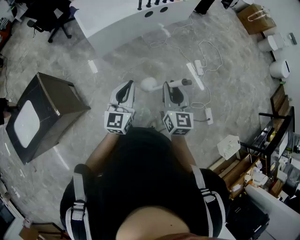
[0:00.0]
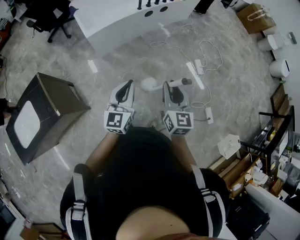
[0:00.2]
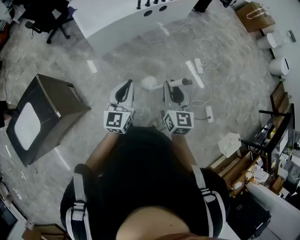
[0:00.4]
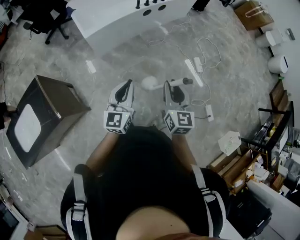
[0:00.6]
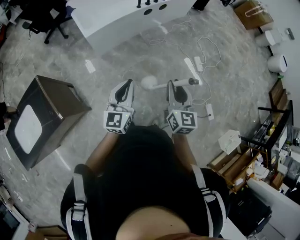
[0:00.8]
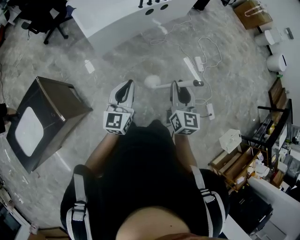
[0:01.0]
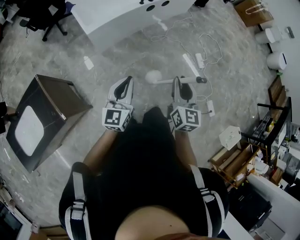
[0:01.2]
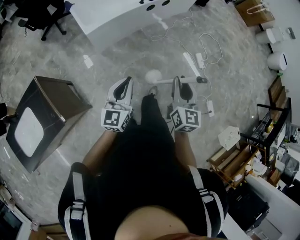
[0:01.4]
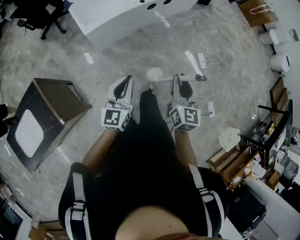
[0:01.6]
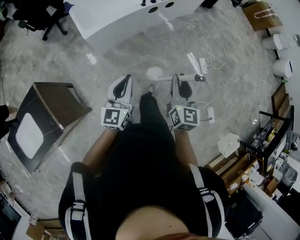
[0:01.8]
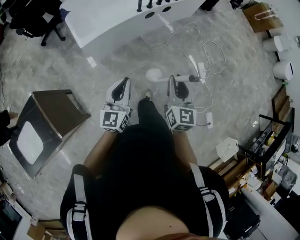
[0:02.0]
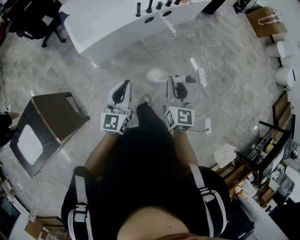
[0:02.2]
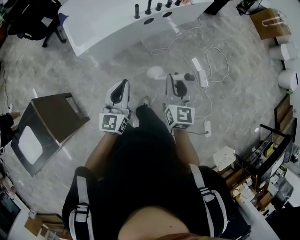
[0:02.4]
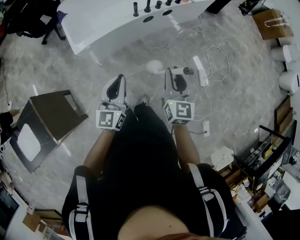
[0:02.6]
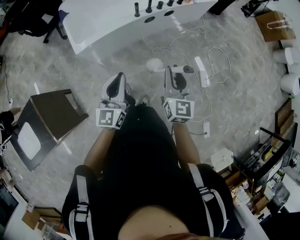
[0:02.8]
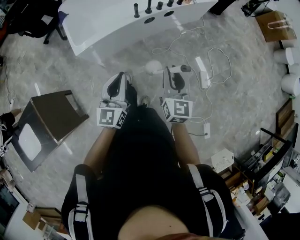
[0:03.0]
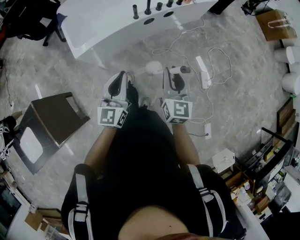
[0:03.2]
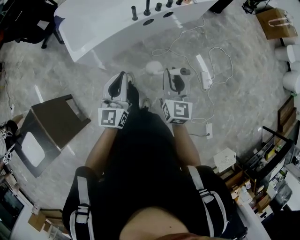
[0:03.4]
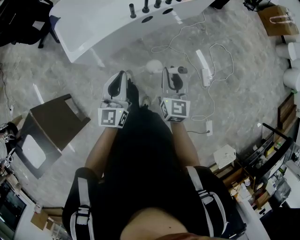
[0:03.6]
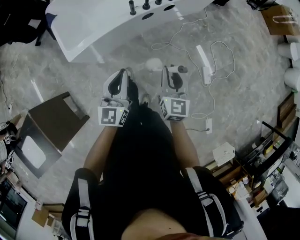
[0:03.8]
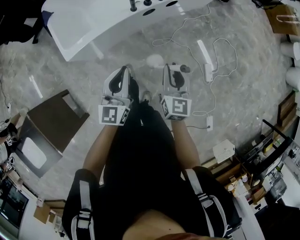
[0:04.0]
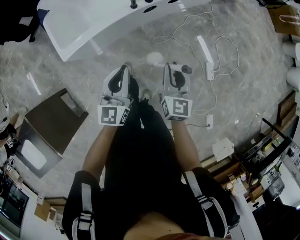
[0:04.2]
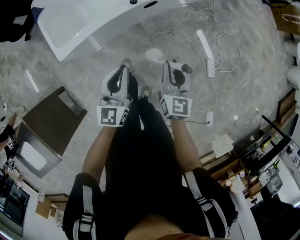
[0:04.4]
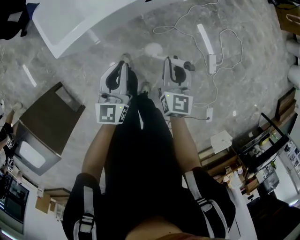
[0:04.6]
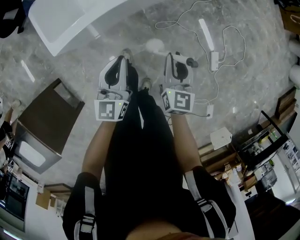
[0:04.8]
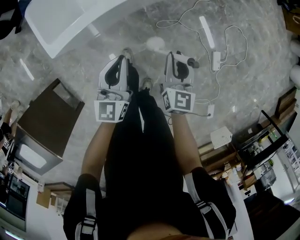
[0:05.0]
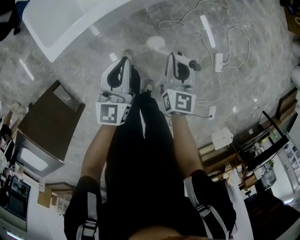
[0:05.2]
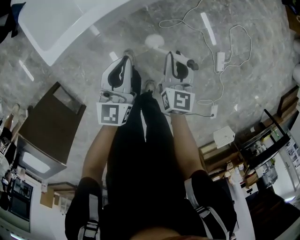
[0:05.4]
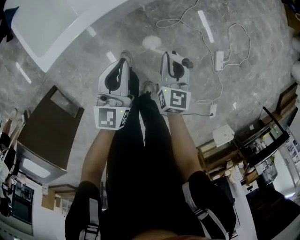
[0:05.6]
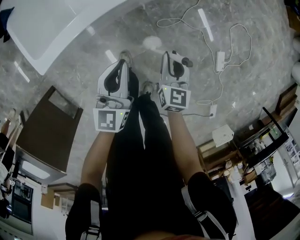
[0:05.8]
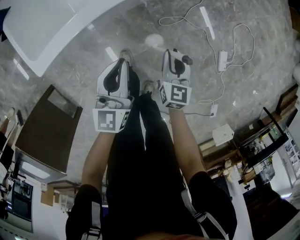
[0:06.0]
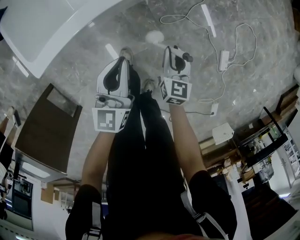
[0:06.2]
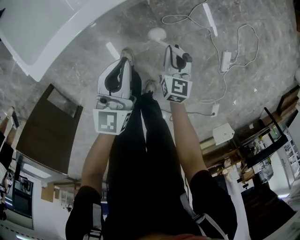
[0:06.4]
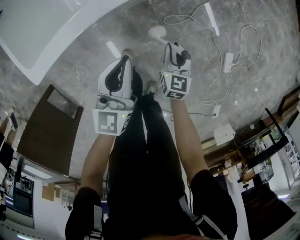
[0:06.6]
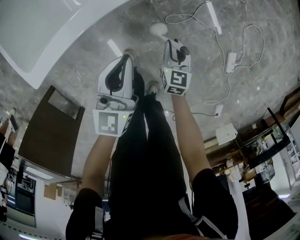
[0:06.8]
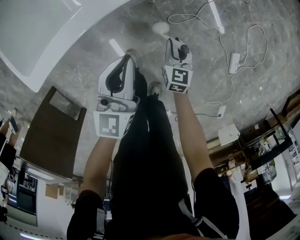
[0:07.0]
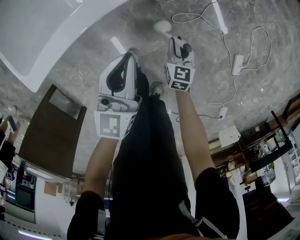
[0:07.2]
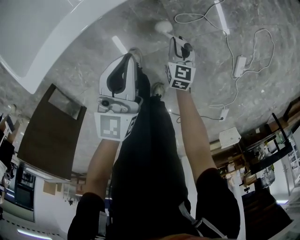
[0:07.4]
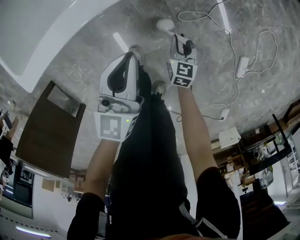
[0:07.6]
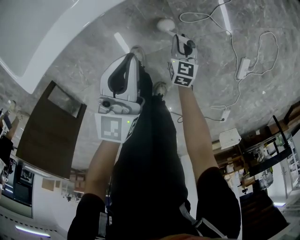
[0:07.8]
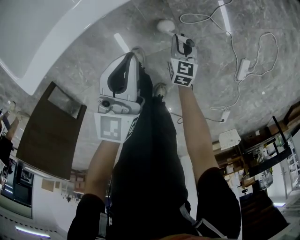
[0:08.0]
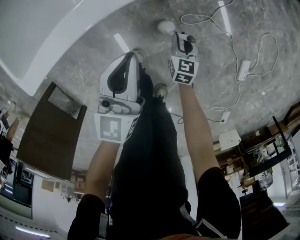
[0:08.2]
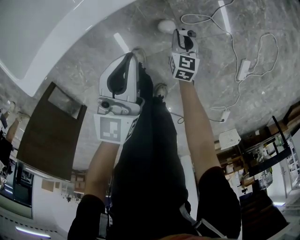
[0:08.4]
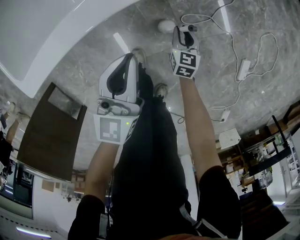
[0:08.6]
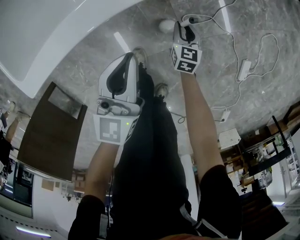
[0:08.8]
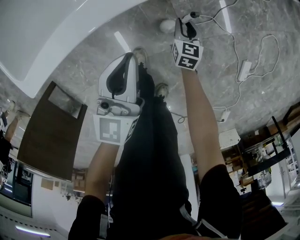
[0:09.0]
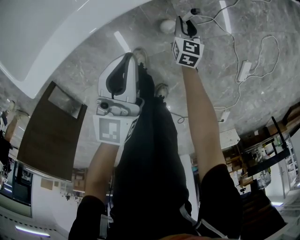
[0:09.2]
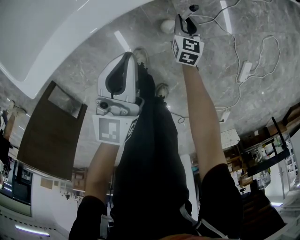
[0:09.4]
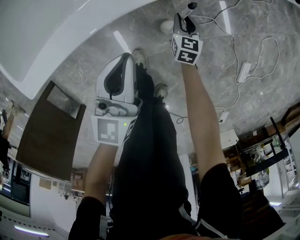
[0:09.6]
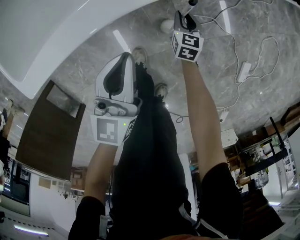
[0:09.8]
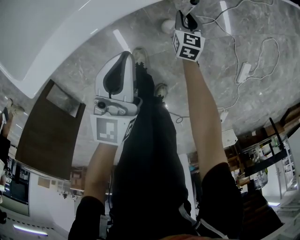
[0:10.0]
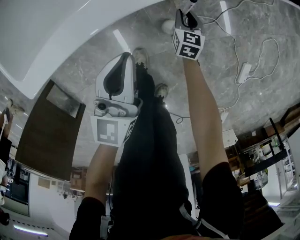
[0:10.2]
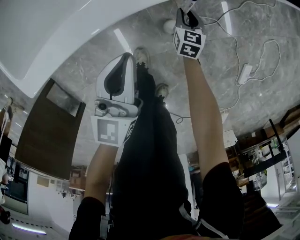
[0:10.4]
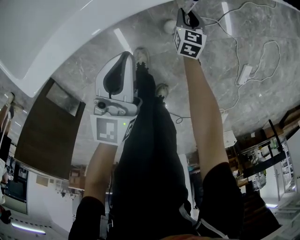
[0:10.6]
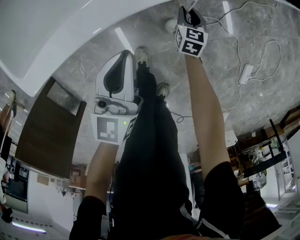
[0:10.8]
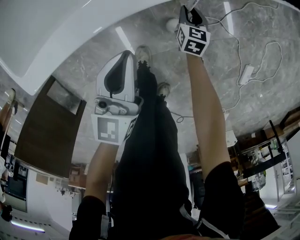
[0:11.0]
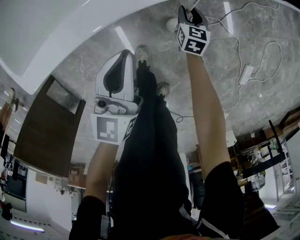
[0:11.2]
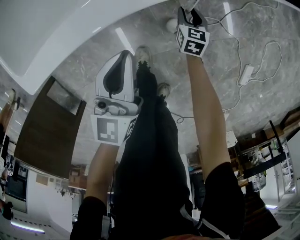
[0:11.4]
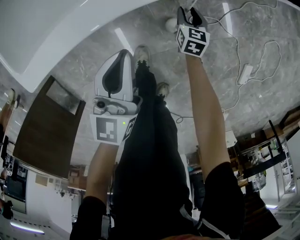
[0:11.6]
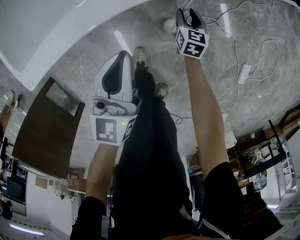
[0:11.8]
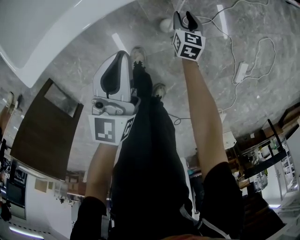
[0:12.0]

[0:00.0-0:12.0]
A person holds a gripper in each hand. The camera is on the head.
0:00.0 to 0:01.6: The right gripper goes some 10 cm forward. Meanwhile the left gripper goes about 10 cm forward and to the left.
0:01.6 to 0:03.0: Both grippers travel together forward, some 30 cm.
0:03.0 to 0:04.4: The left gripper heads forward and downward, covering about 25 cm, while the right gripper travels downward and forward by about 25 cm.
0:04.4 to 0:06.0: The right gripper travels downward by some 25 cm. Meanwhile the left gripper heads downward and forward, covering approximately 20 cm.
0:06.0 to 0:07.6: The left gripper is displaced downward by approximately 15 cm. The right gripper heads downward, covering about 25 cm.
0:07.6 to 0:09.0: The right gripper heads forward, covering roughly 10 cm.
0:09.0 to 0:10.4: The right gripper shifts by approximately 5 cm.
0:10.4 to 0:12.0: There are only small adjustments of the grippers.

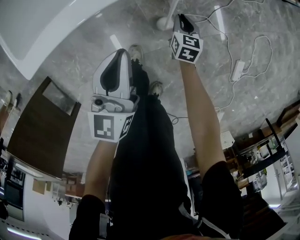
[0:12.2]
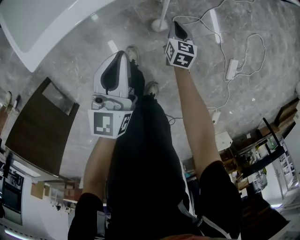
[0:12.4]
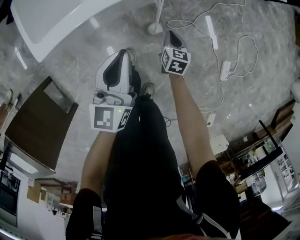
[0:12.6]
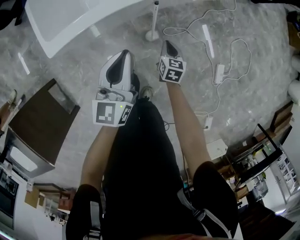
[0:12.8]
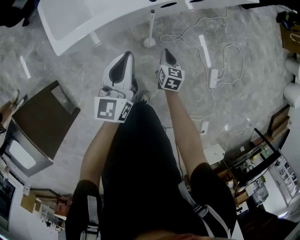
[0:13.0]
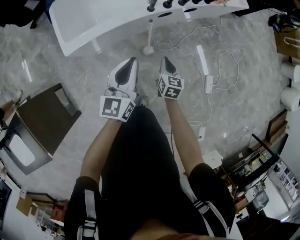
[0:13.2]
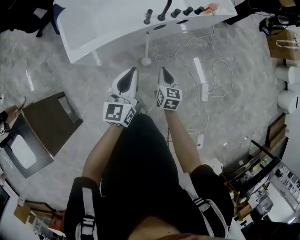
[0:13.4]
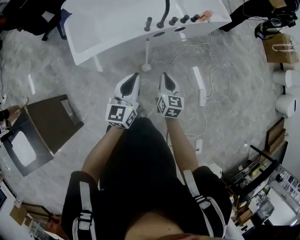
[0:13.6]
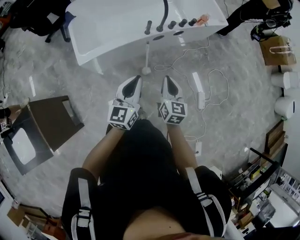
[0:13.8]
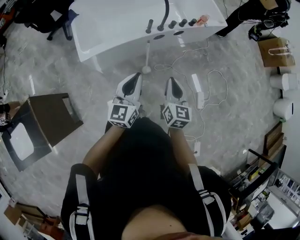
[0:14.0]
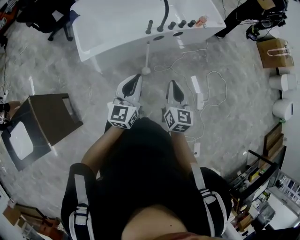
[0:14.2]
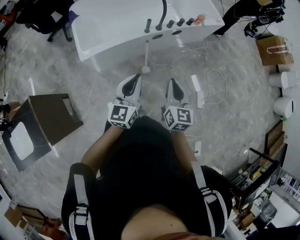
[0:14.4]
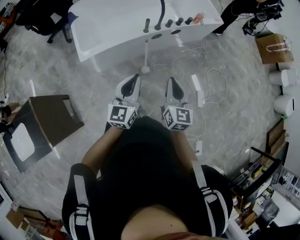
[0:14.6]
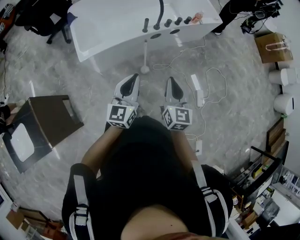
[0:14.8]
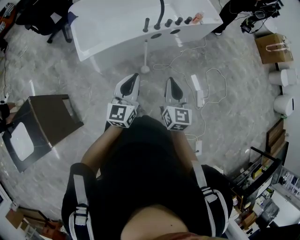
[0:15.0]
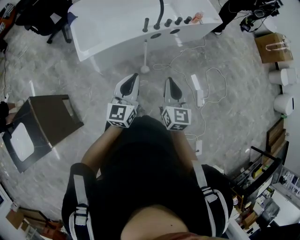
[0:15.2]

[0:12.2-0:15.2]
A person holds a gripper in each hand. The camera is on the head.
0:12.2 to 0:13.8: The two grippers go roughly 60 cm upward and backward. The right gripper turns by approximately 20 degrees.
0:13.8 to 0:15.2: The left gripper is displaced backward by about 5 cm. Meanwhile the right gripper moves backward and upward, approximately 10 cm.

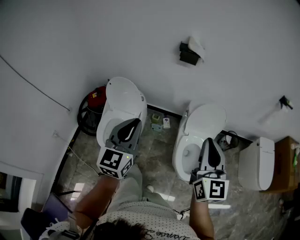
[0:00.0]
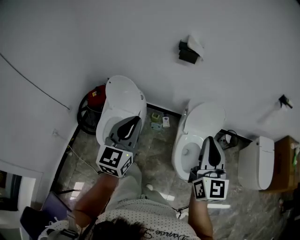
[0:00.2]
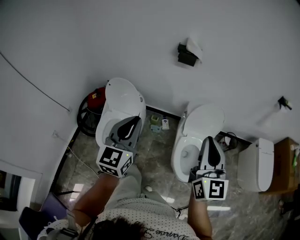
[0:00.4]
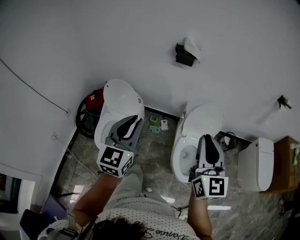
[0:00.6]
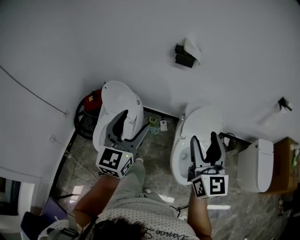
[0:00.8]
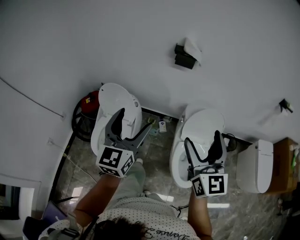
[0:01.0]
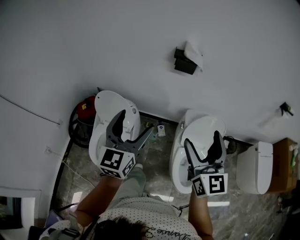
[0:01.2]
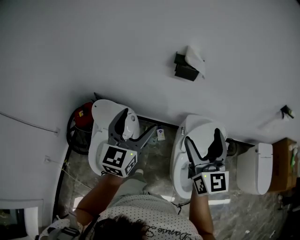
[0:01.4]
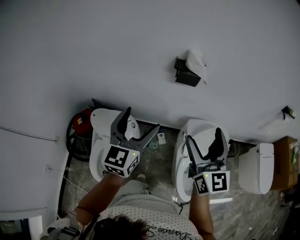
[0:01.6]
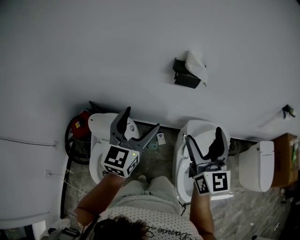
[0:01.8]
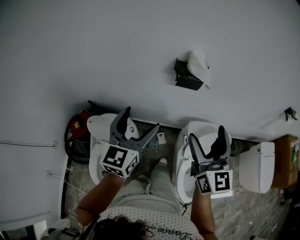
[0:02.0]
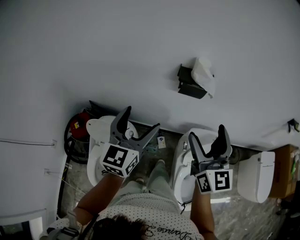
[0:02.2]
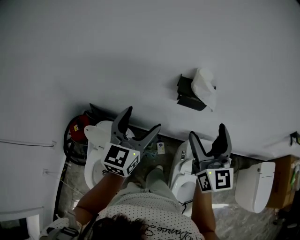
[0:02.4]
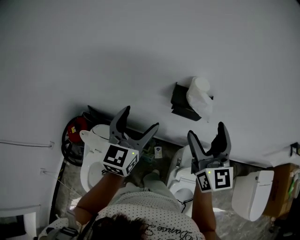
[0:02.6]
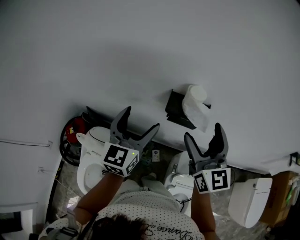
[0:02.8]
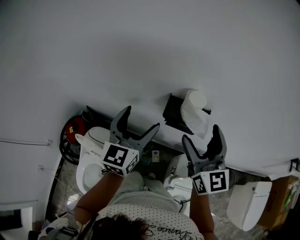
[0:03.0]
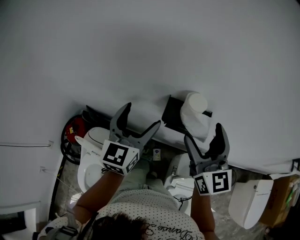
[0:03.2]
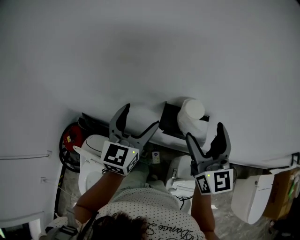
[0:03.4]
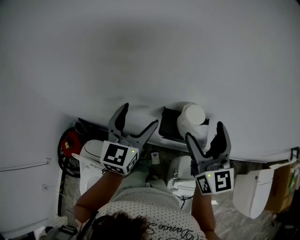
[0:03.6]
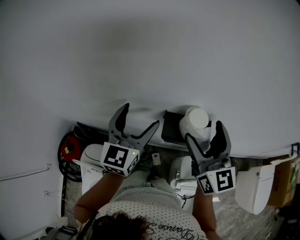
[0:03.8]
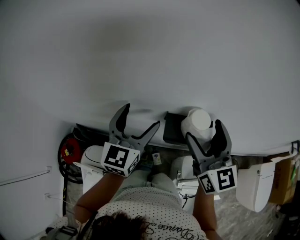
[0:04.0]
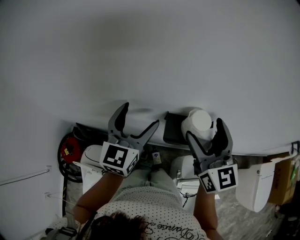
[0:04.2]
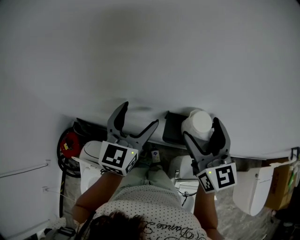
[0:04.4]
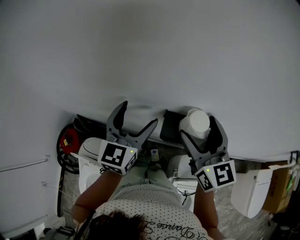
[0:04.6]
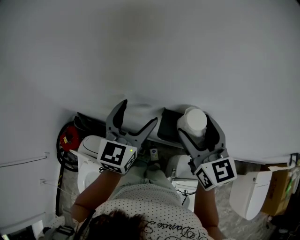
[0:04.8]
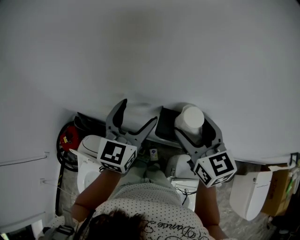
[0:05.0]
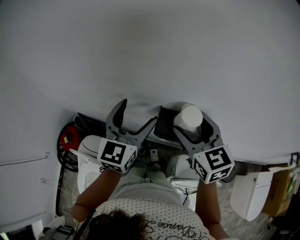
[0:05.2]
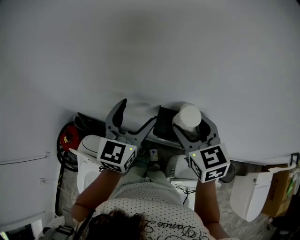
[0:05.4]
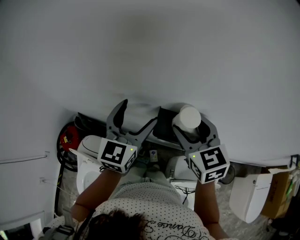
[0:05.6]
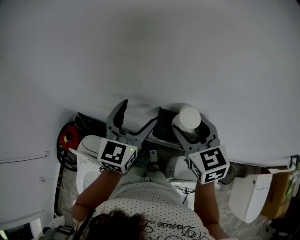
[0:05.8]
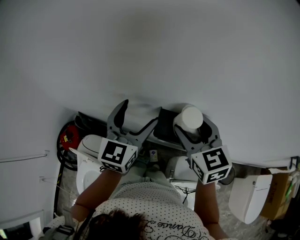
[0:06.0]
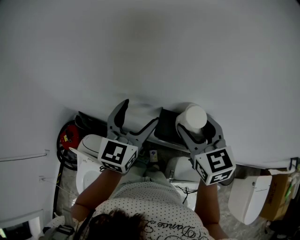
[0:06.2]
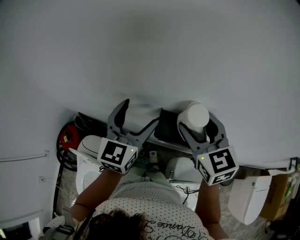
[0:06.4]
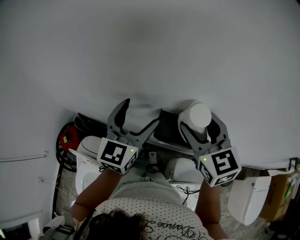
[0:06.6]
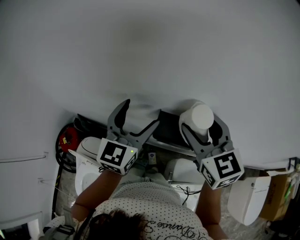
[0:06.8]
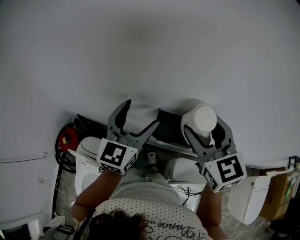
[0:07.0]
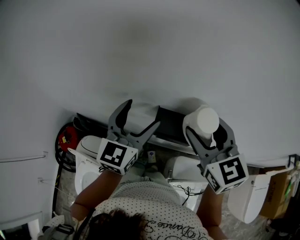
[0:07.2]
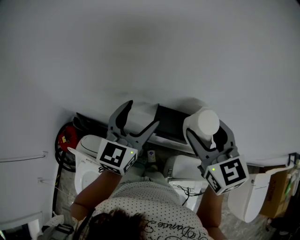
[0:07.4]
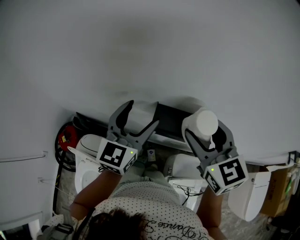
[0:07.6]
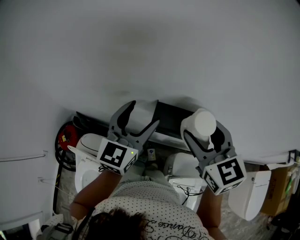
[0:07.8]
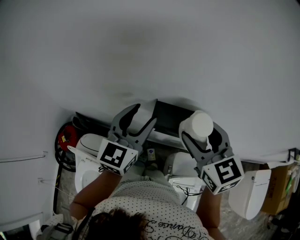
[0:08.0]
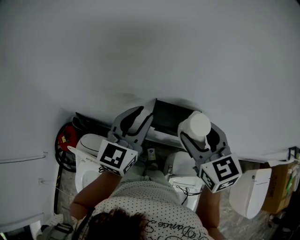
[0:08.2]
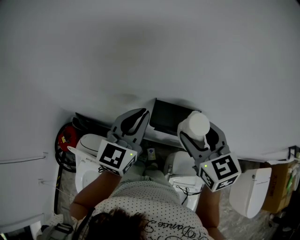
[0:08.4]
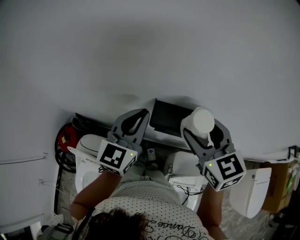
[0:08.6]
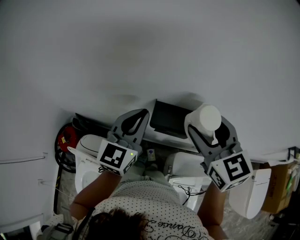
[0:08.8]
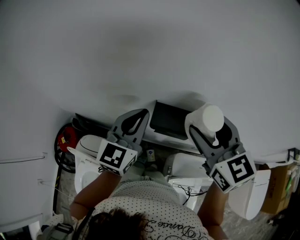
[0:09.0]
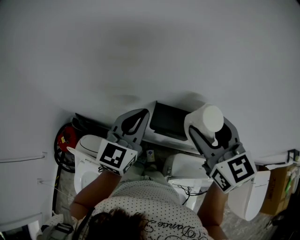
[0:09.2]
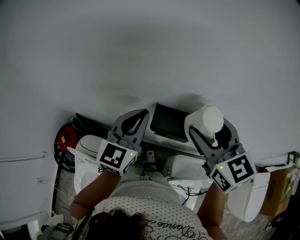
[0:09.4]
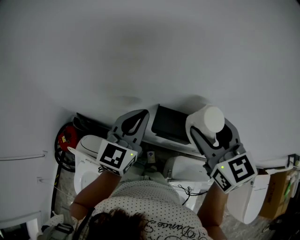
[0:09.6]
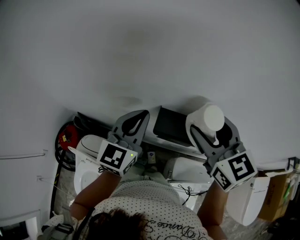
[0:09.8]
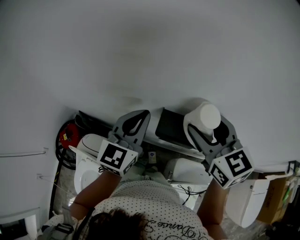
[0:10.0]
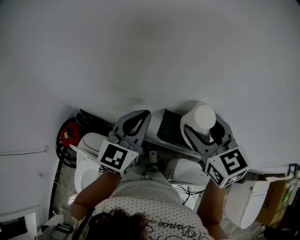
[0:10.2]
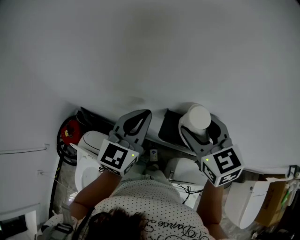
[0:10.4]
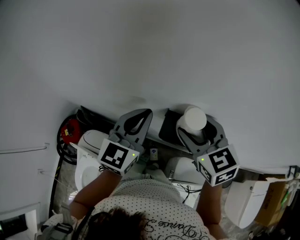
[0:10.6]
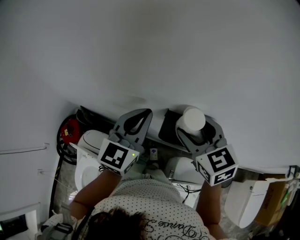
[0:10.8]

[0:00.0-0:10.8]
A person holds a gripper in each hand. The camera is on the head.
0:00.0 to 0:01.6: Both grippers travel together forward, approximately 25 cm. The left gripper opens up, while the right gripper opens up.
0:01.6 to 0:03.0: The two grippers go some 30 cm forward.
0:03.0 to 0:04.6: Both grippers move forward, approximately 10 cm.
0:06.2 to 0:07.8: The right gripper moves roughly 5 cm.
0:07.8 to 0:09.2: The left gripper closes up.
0:09.2 to 0:10.8: The right gripper goes some 5 cm downward.
